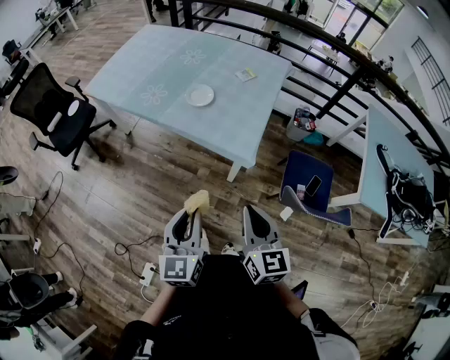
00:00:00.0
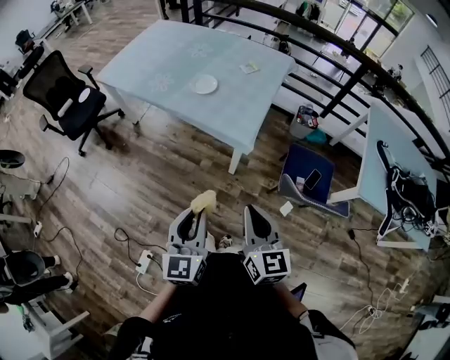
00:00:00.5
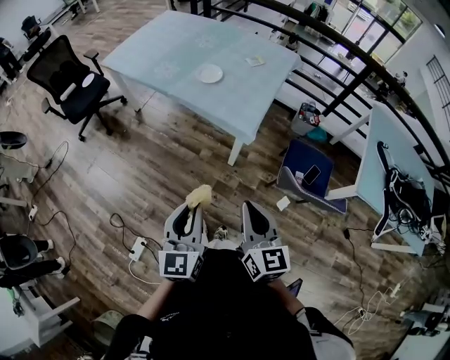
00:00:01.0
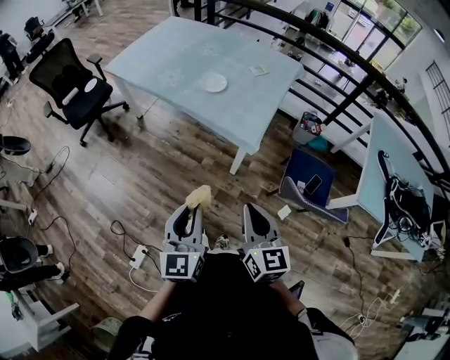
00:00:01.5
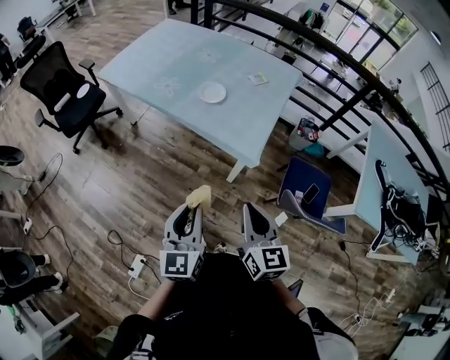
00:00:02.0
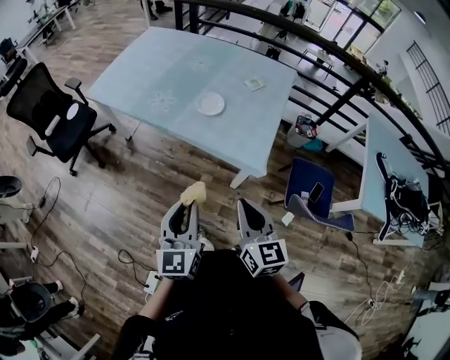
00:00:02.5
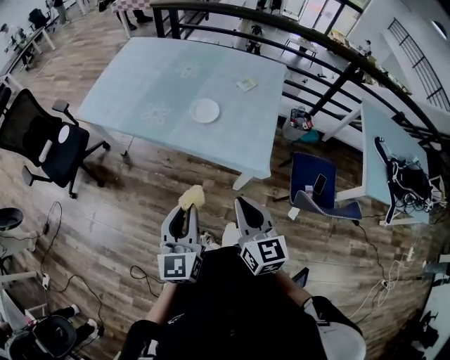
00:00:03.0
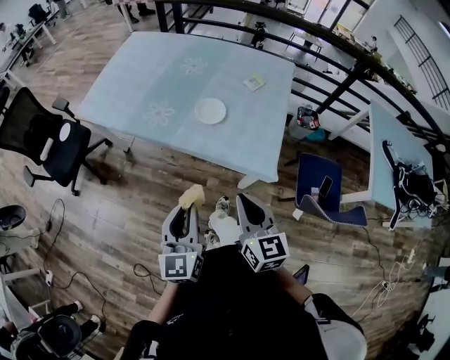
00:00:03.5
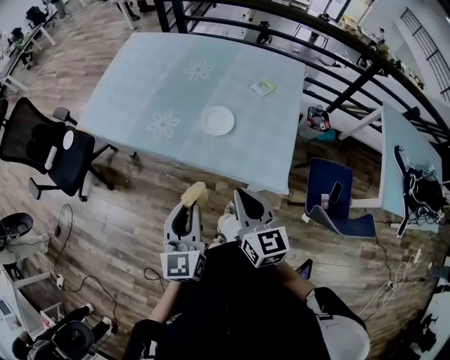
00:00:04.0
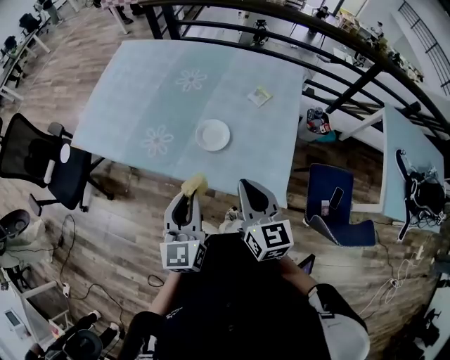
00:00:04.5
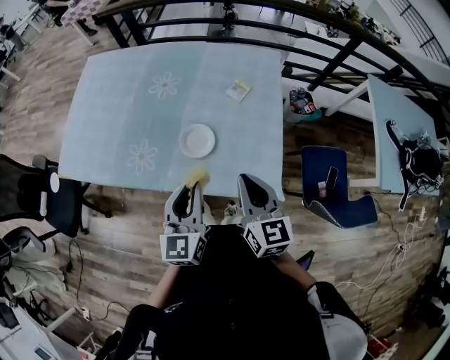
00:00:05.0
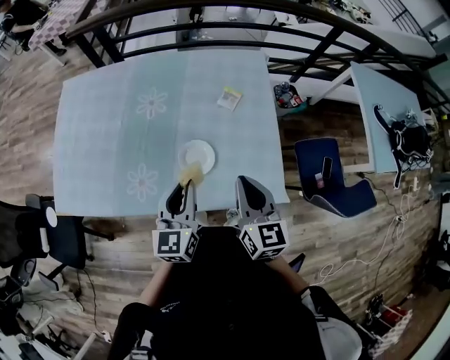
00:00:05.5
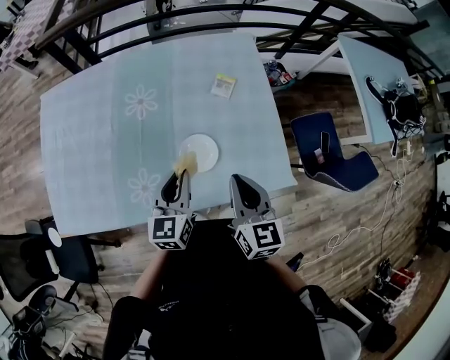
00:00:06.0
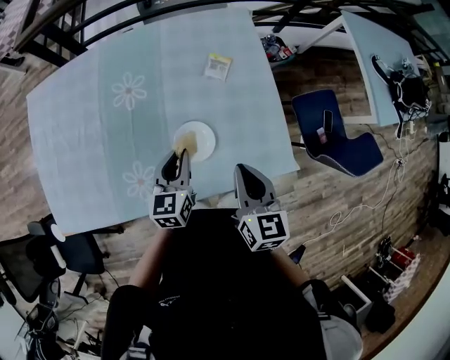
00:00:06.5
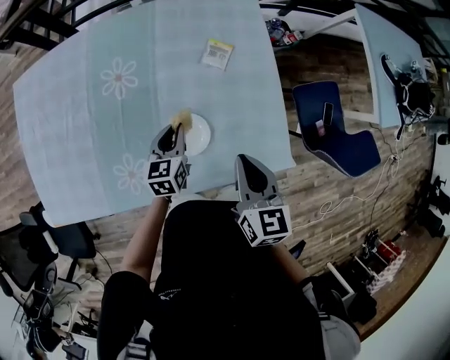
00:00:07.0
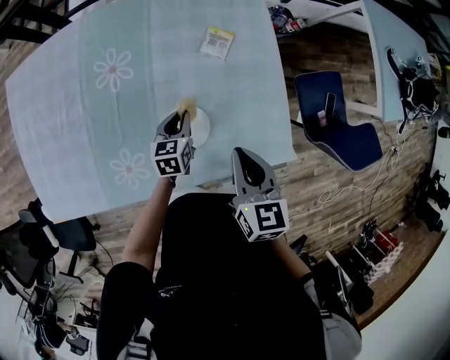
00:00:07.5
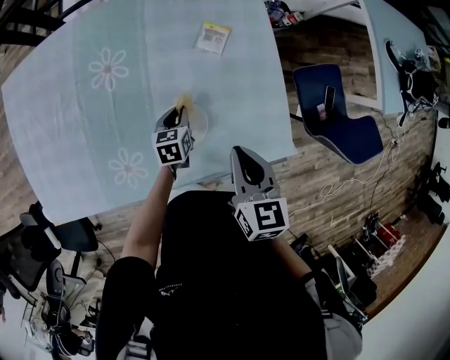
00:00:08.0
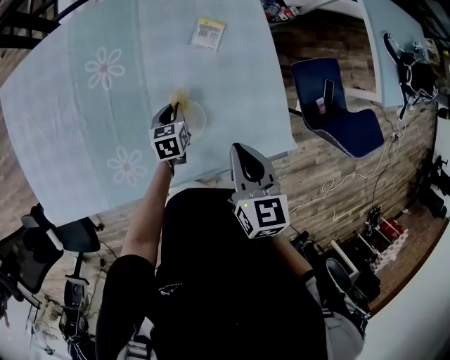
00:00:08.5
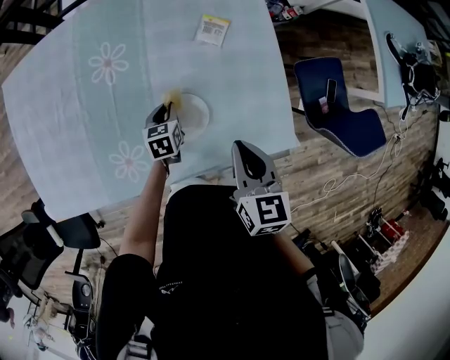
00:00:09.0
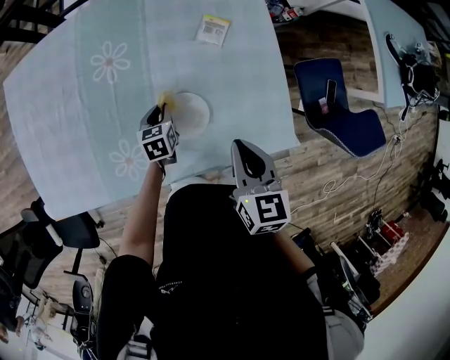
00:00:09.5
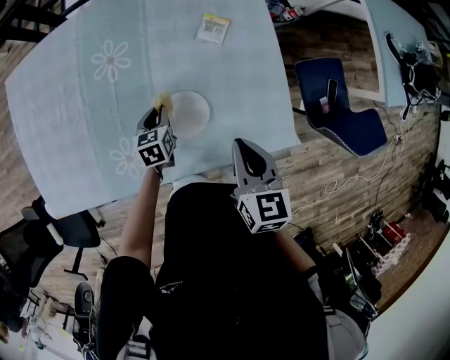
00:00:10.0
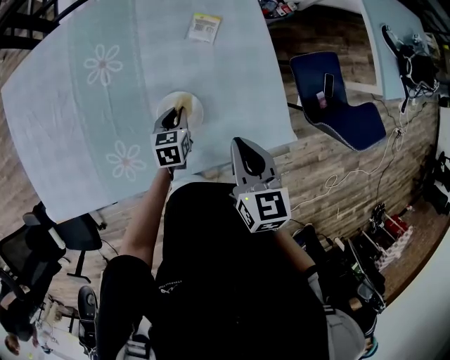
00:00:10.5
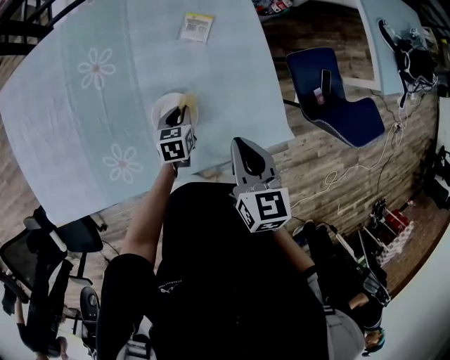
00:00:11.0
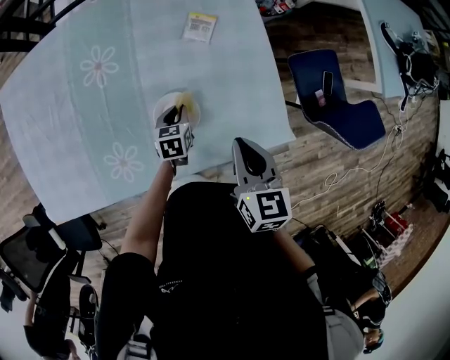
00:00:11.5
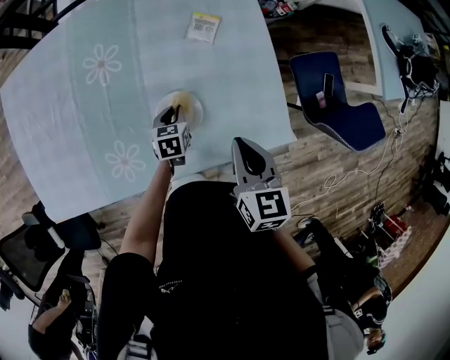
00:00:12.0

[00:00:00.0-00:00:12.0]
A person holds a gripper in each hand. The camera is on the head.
00:00:00.0 to 00:00:02.0: The left gripper moves some 15 cm backward and comes back. The right gripper goes backward and returns, approximately 10 cm each way.
00:00:02.0 to 00:00:04.0: The left gripper shifts approximately 25 cm forward. The right gripper travels forward and to the left by roughly 30 cm.
00:00:04.0 to 00:00:06.0: The left gripper shifts by about 35 cm, and changes its angle by some 40 degrees, while the right gripper ends up about 25 cm from where it was, and changes its angle by some 30 degrees.
00:00:06.0 to 00:00:08.0: The left gripper travels downward and forward by some 25 cm, and turns by some 30 degrees; the right gripper shifts approximately 10 cm forward and downward.
00:00:08.0 to 00:00:10.0: The left gripper moves to the left, some 5 cm.
00:00:10.0 to 00:00:12.0: The left gripper shifts roughly 10 cm to the right.

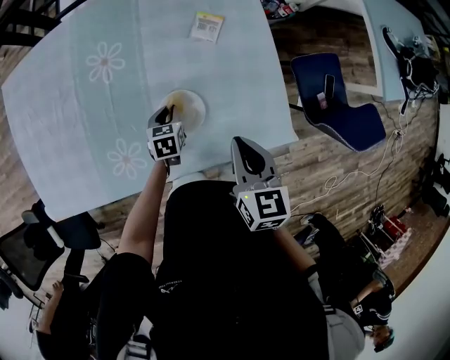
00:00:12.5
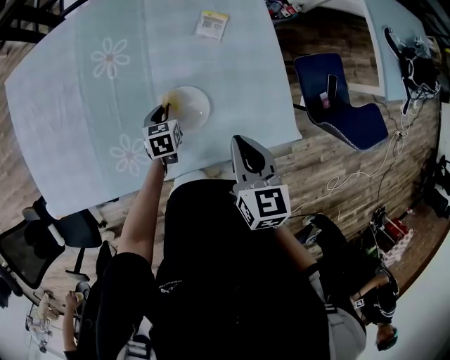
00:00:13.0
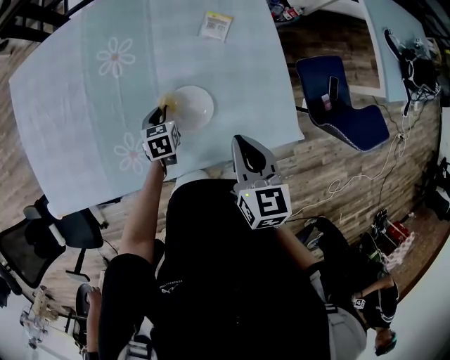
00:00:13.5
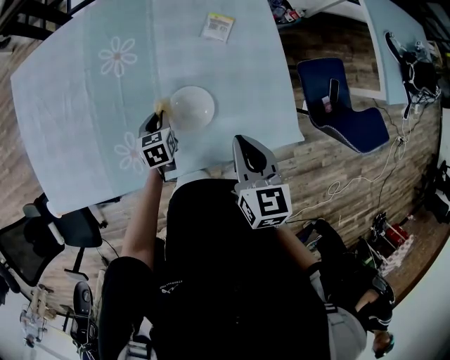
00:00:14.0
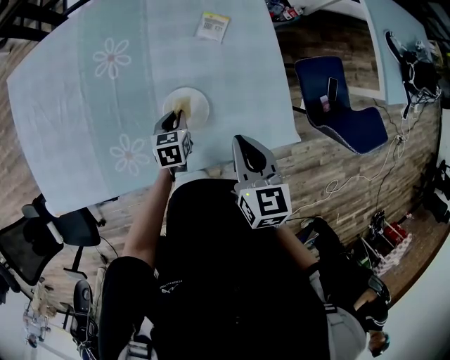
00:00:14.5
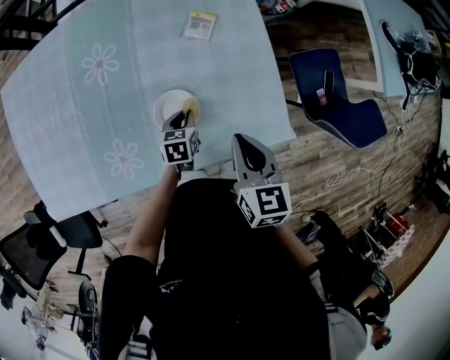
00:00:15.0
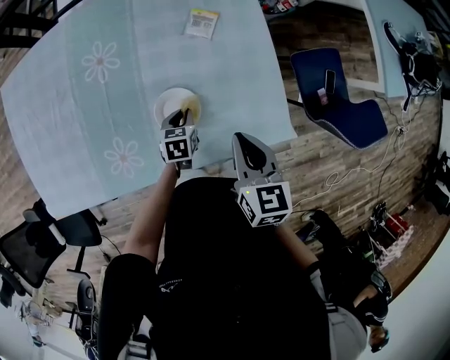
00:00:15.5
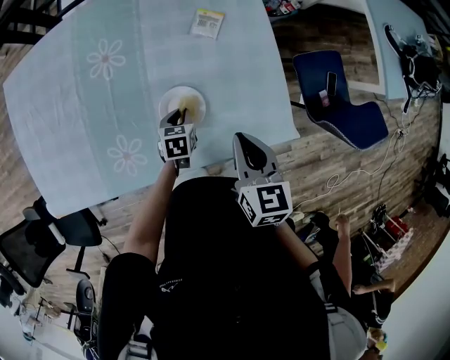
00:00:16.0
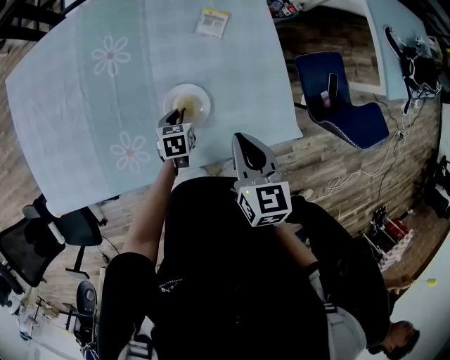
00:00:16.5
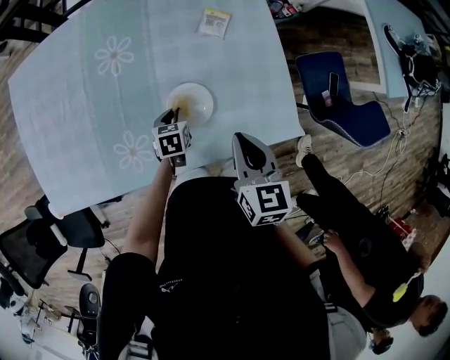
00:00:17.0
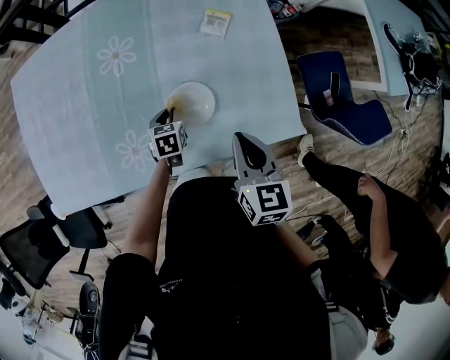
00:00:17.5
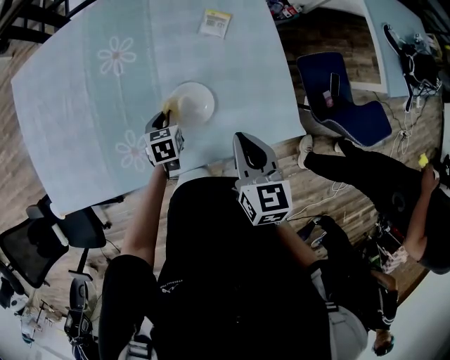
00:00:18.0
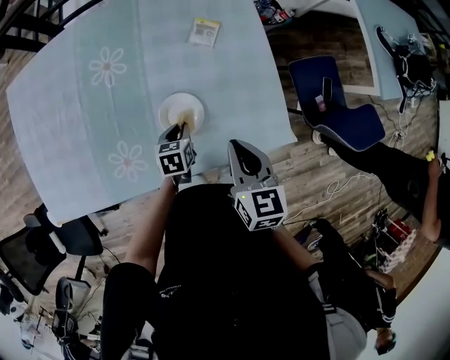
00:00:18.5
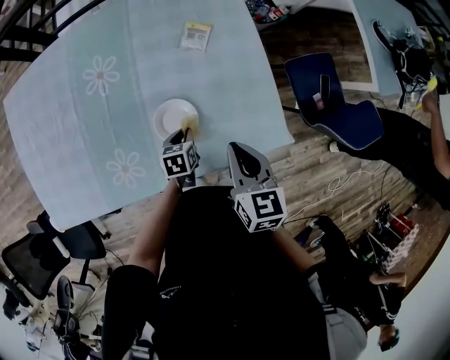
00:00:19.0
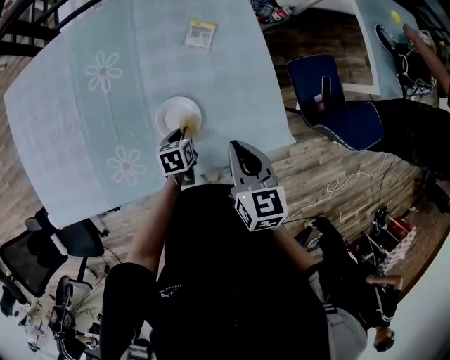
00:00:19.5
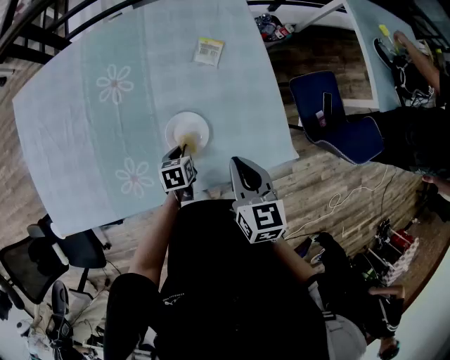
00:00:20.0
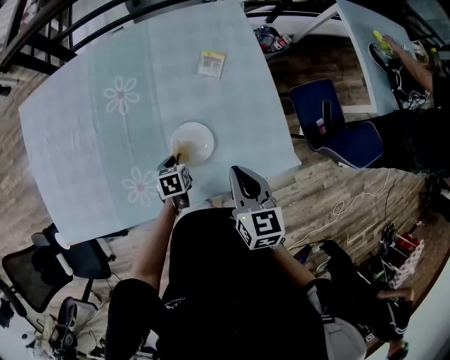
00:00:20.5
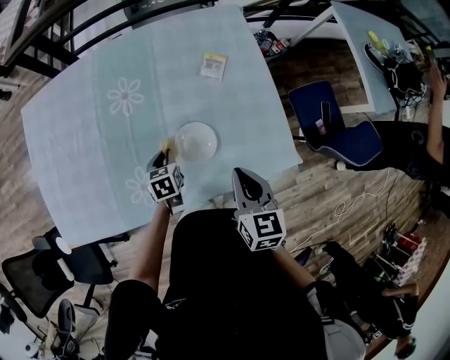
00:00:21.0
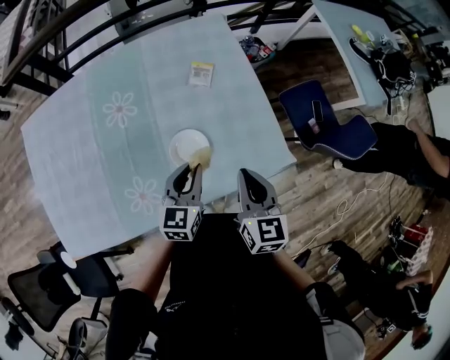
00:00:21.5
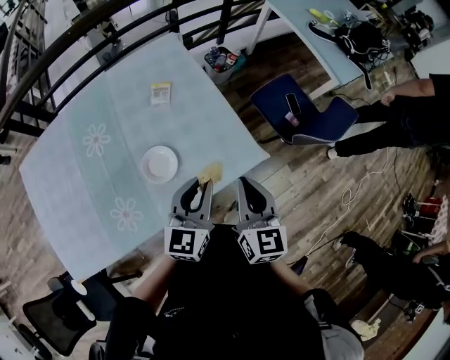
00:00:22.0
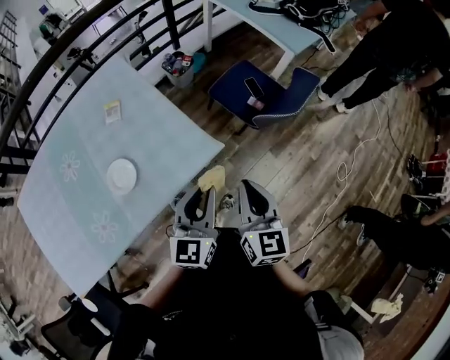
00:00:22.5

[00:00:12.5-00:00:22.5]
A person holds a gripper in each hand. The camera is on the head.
00:00:12.5 to 00:00:14.5: The left gripper reaches approximately 5 cm to the left, then returns.
00:00:14.5 to 00:00:16.5: The grippers stay close to where they were, moving slightly.
00:00:16.5 to 00:00:18.5: The left gripper moves approximately 5 cm to the left and comes back.
00:00:18.5 to 00:00:20.5: The left gripper shifts some 5 cm to the left.
00:00:20.5 to 00:00:22.5: The left gripper changes place by approximately 50 cm, and angles its fingers upward, by roughly 50 degrees. Meanwhile the right gripper changes place by roughly 35 cm, and changes its angle by about 40 degrees.

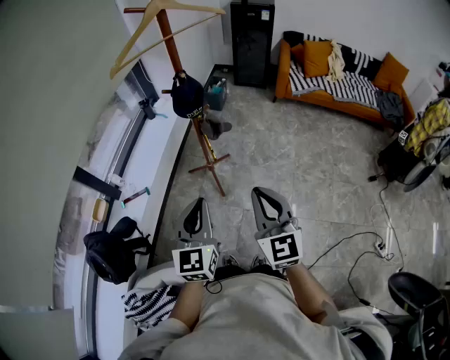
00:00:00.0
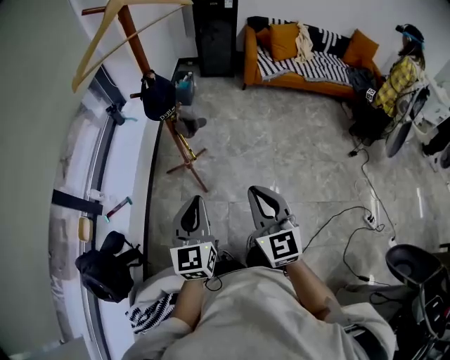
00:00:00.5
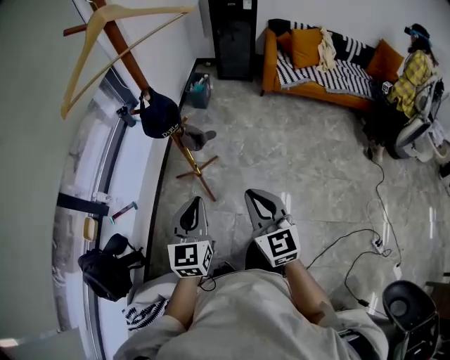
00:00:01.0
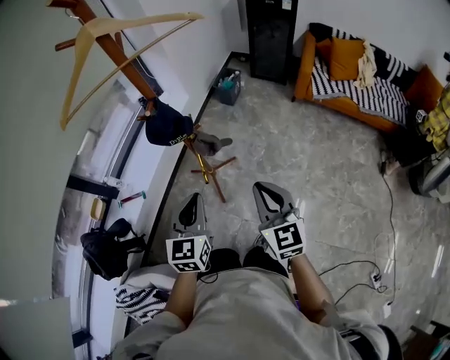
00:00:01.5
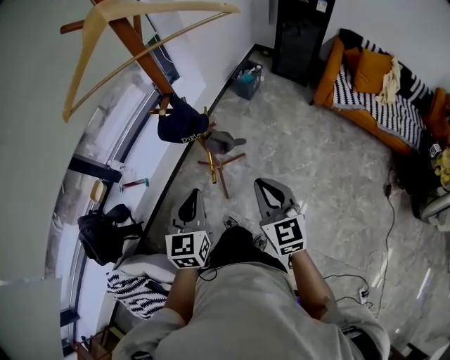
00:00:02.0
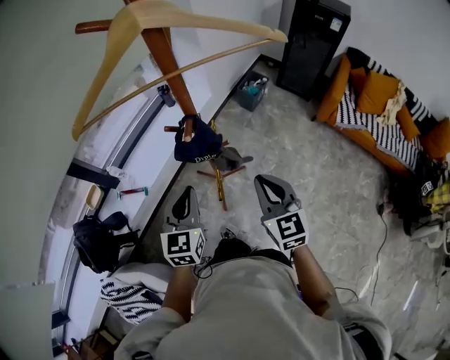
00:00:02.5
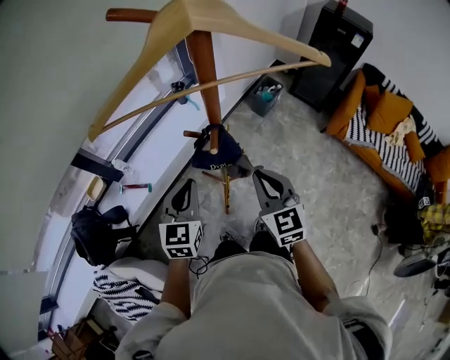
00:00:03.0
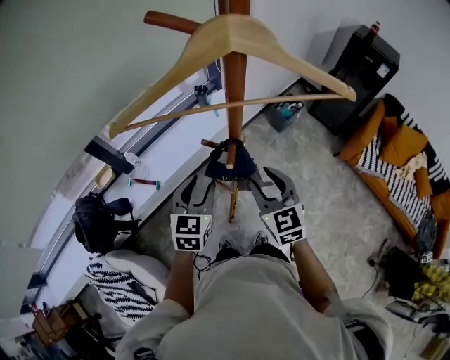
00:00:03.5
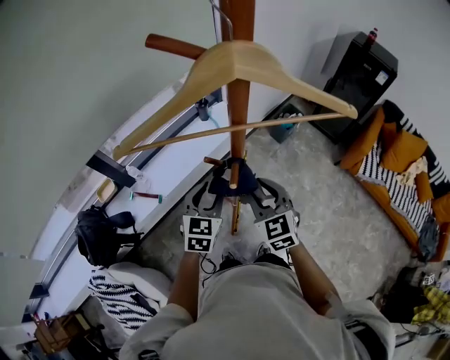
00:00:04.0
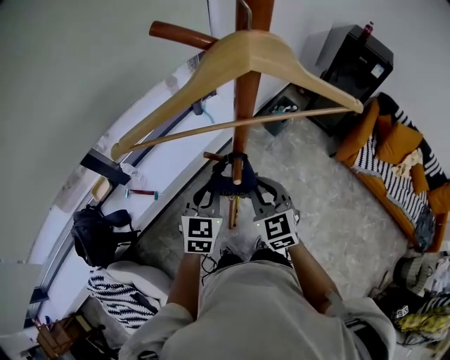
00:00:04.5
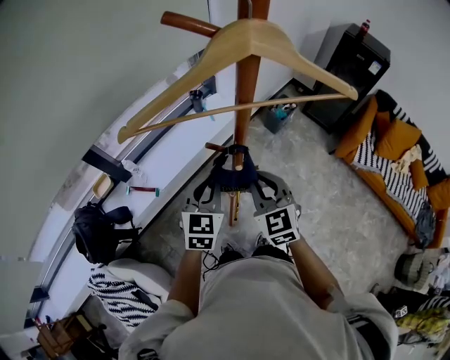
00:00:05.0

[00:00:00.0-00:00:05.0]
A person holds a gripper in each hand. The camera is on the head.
00:00:00.0 to 00:00:02.5: The left gripper ends up some 35 cm from where it was, and rotates approximately 20 degrees, while the right gripper shifts by some 40 cm, and rotates about 30 degrees.
00:00:02.5 to 00:00:05.0: The left gripper travels forward by some 10 cm, and opens and closes again. The right gripper shifts roughly 15 cm forward and to the left, and opens, then closes again.
